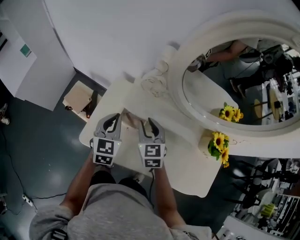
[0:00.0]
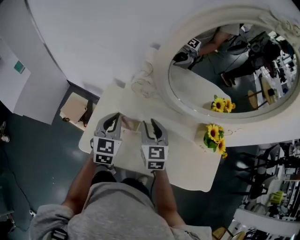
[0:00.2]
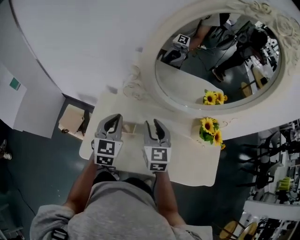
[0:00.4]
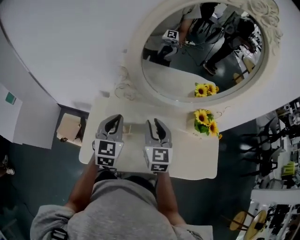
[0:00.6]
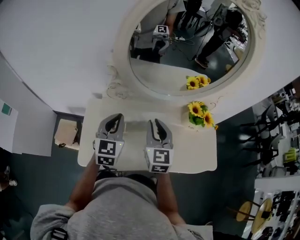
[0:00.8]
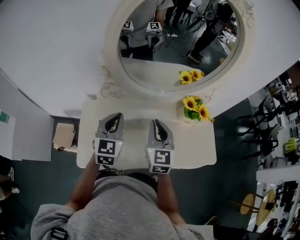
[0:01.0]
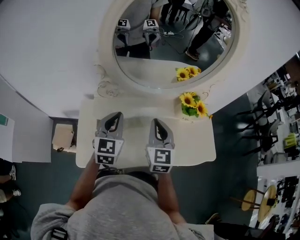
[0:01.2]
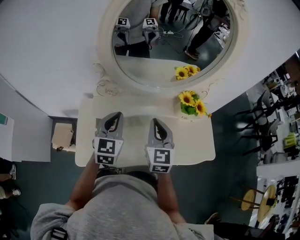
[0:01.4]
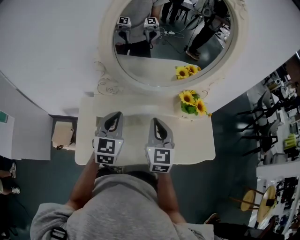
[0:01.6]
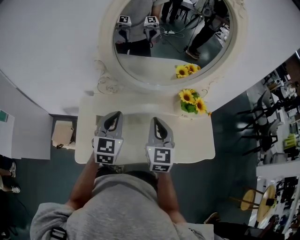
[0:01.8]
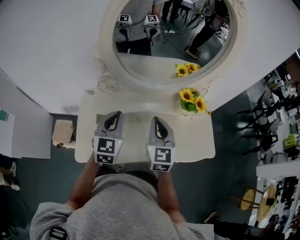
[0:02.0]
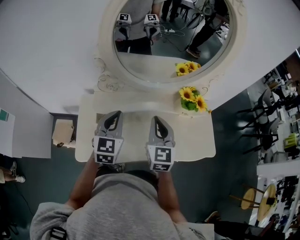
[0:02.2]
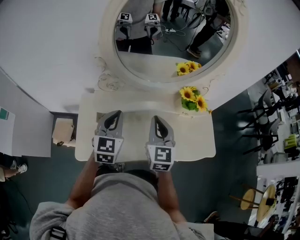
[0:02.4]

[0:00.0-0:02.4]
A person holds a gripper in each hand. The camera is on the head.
0:00.0 to 0:01.2: The right gripper ends up approximately 20 cm from where it was, changes its angle by roughly 40 degrees, and closes. Meanwhile the left gripper moves approximately 15 cm, and changes its angle by some 30 degrees.
0:01.2 to 0:02.4: The grippers move only a little.

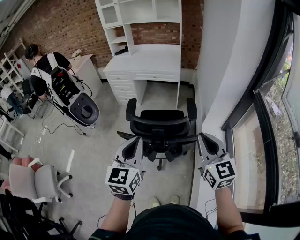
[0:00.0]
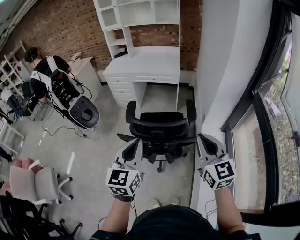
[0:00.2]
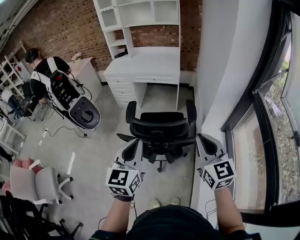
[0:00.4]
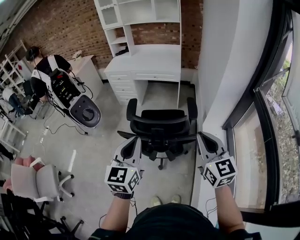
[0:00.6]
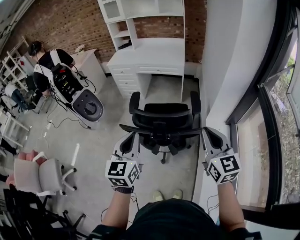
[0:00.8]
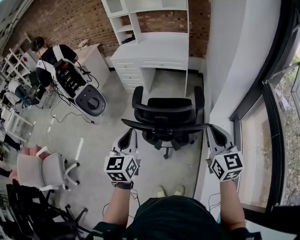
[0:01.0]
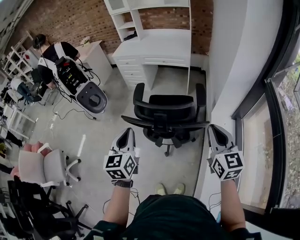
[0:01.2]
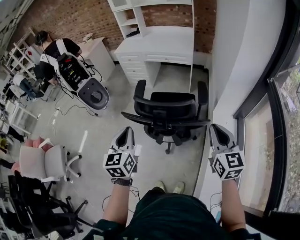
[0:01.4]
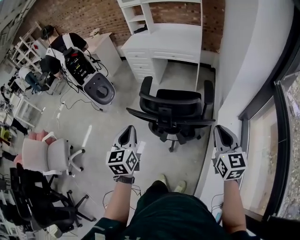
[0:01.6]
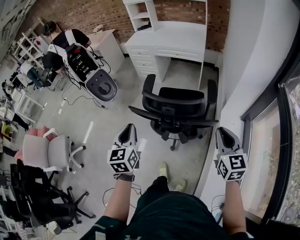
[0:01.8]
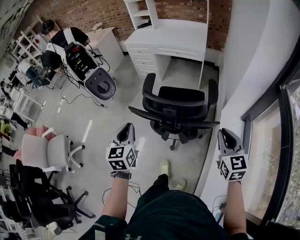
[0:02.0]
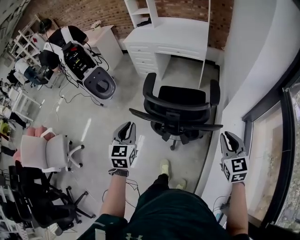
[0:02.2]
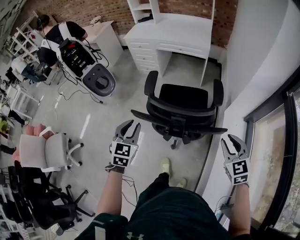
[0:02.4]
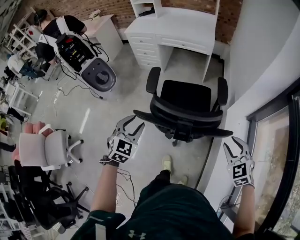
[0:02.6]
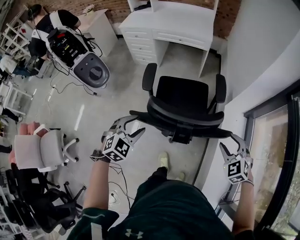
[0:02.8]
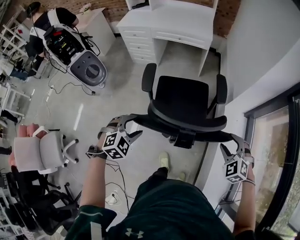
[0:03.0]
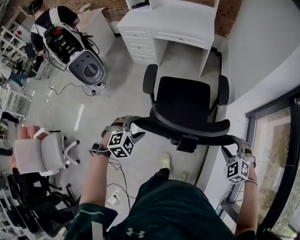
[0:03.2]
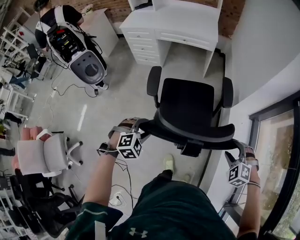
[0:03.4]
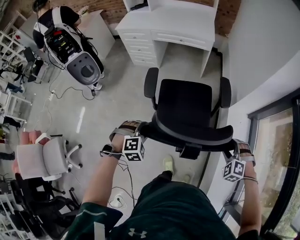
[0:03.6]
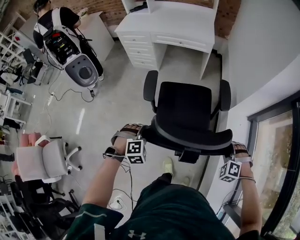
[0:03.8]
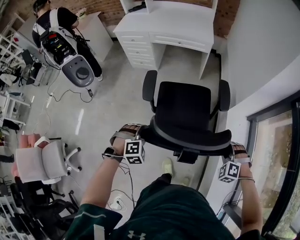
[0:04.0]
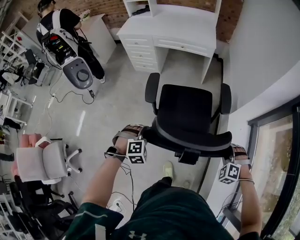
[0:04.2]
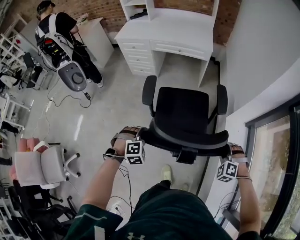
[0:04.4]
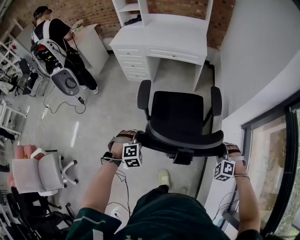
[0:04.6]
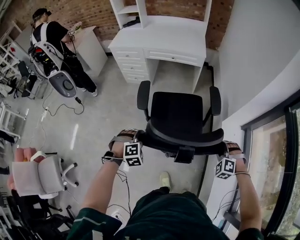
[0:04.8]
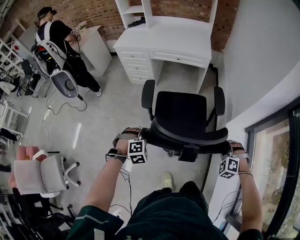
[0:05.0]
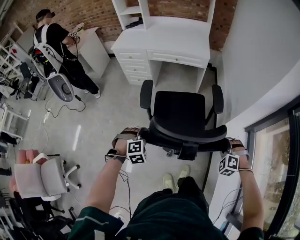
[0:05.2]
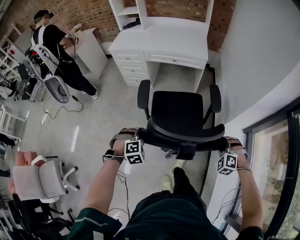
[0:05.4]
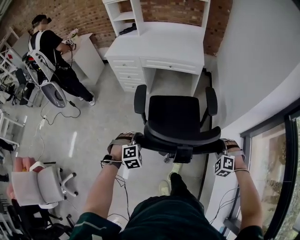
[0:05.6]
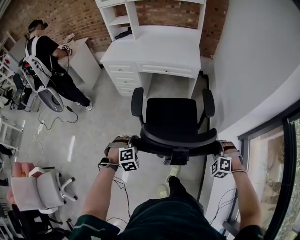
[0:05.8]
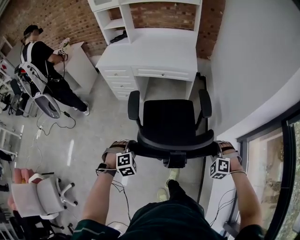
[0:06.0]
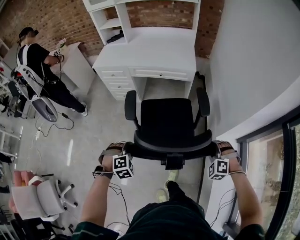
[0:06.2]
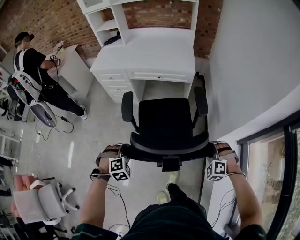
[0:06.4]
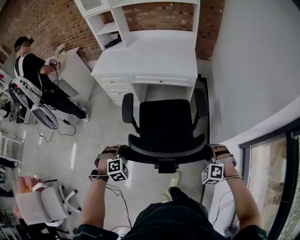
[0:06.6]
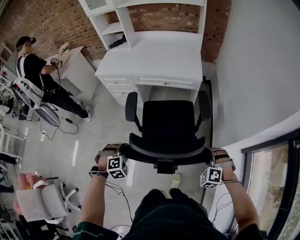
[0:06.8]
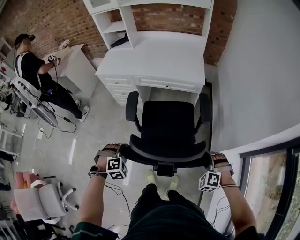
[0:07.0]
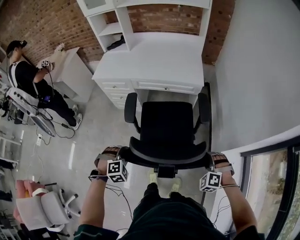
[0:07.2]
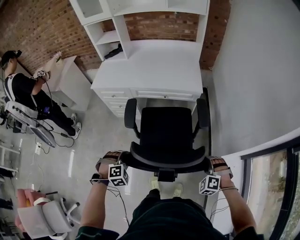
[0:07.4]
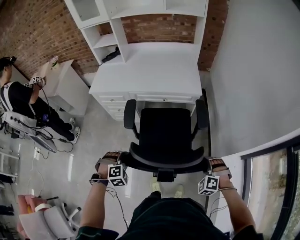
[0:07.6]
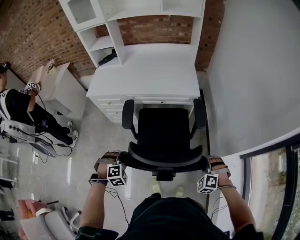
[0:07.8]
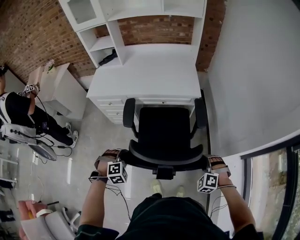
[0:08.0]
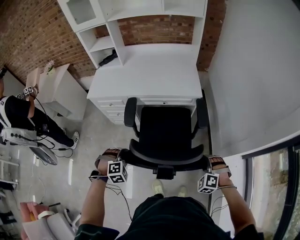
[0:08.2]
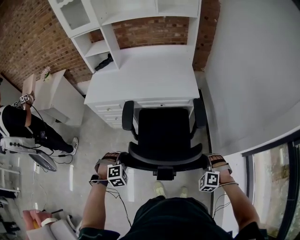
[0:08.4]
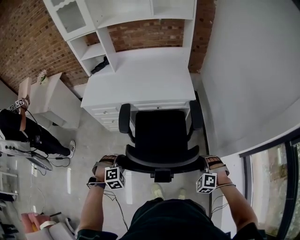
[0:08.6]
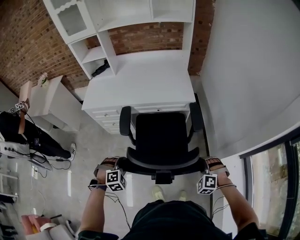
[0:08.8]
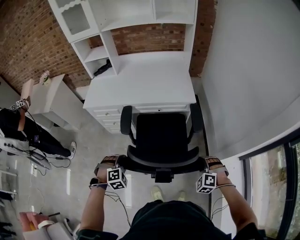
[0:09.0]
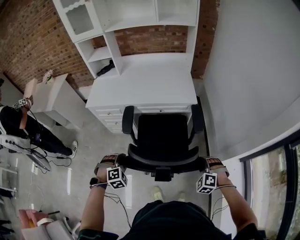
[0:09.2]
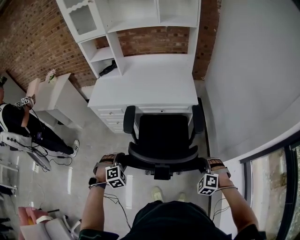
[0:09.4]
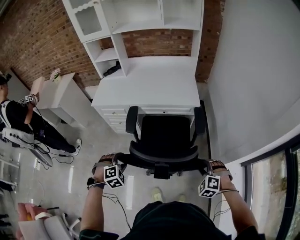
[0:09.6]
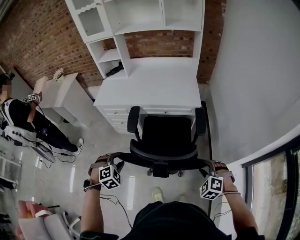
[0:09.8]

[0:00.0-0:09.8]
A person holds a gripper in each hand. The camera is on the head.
0:00.0 to 0:01.4: The left gripper heads downward, covering approximately 10 cm. Meanwhile the right gripper is displaced to the right and downward by some 10 cm.
0:01.4 to 0:02.8: The two grippers go roughly 20 cm downward and forward. The left gripper rotates approximately 60 degrees, and opens up. Meanwhile the right gripper tips its fingers downward by some 30 degrees, and opens its fingers.
0:02.8 to 0:04.2: Both grippers move downward and forward, approximately 15 cm. The left gripper changes its angle by some 30 degrees; the right gripper swivels roughly 30 degrees, and closes its fingers.
0:04.2 to 0:05.6: Both grippers travel together forward, approximately 10 cm.
0:05.6 to 0:07.0: Both grippers move forward, some 15 cm.
0:07.0 to 0:08.4: The grippers both shift forward and to the left by about 15 cm.
0:08.4 to 0:09.8: The grippers both shift upward by about 5 cm.

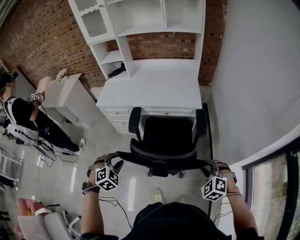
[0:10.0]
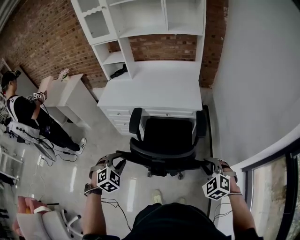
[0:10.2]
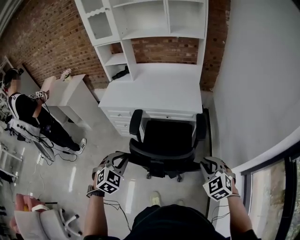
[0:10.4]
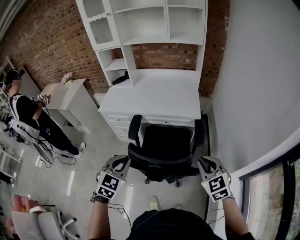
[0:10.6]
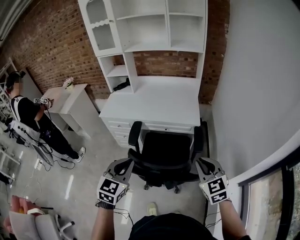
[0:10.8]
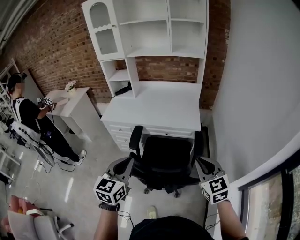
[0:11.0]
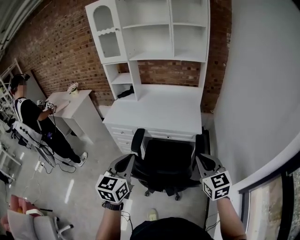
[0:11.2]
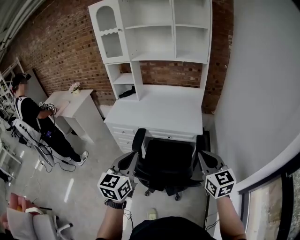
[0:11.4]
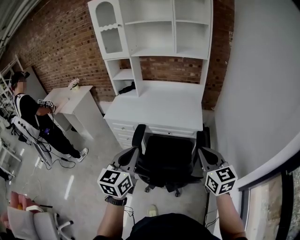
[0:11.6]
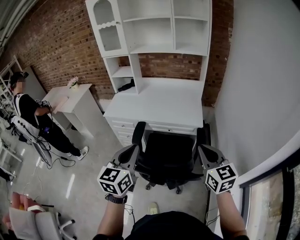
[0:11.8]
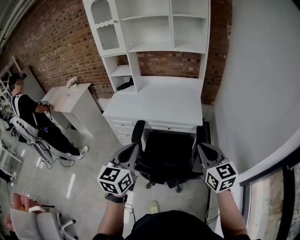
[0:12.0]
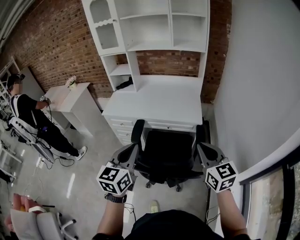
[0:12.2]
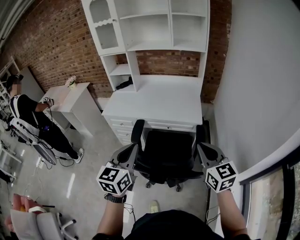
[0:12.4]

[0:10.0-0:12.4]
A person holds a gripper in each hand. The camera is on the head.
0:10.0 to 0:11.2: The right gripper heads upward and forward, covering about 20 cm, tilts its fingers some 30 degrees upward, and closes its fingers. The left gripper heads upward and to the right, covering approximately 20 cm, angles its fingers upward, by approximately 40 degrees, and closes its fingers.
0:11.2 to 0:12.4: The grippers make only small movements.

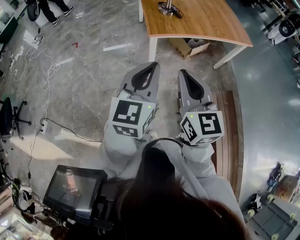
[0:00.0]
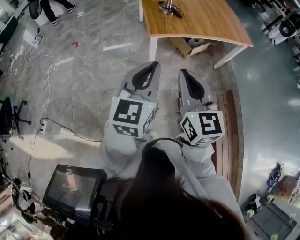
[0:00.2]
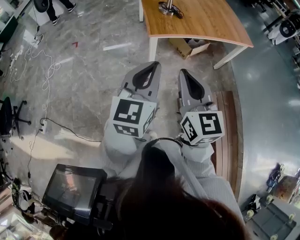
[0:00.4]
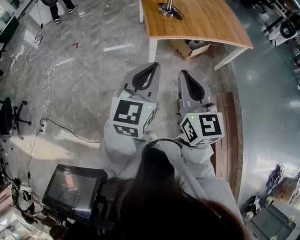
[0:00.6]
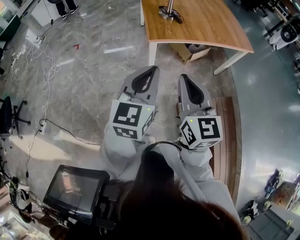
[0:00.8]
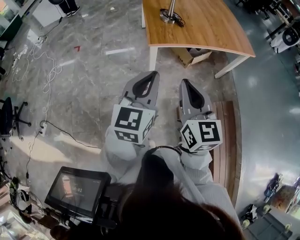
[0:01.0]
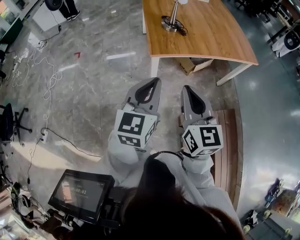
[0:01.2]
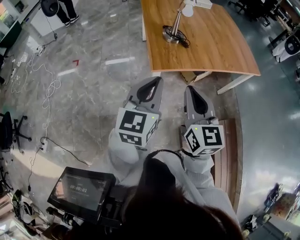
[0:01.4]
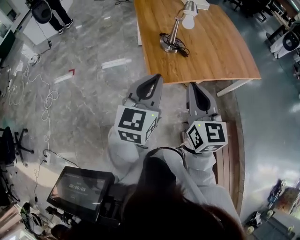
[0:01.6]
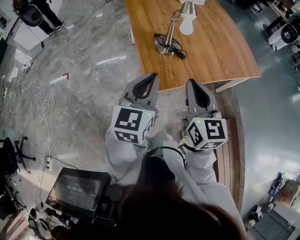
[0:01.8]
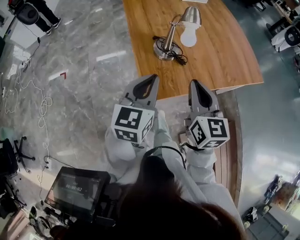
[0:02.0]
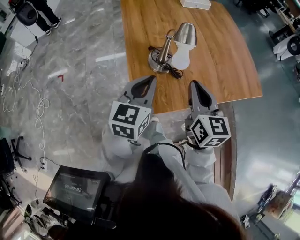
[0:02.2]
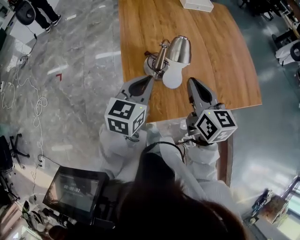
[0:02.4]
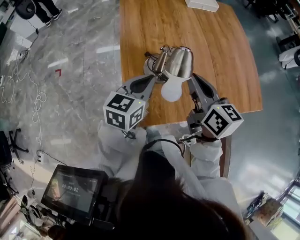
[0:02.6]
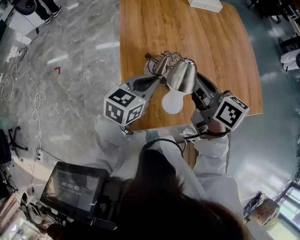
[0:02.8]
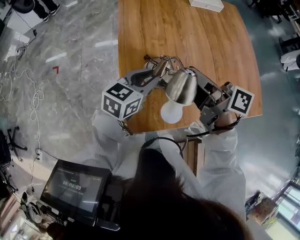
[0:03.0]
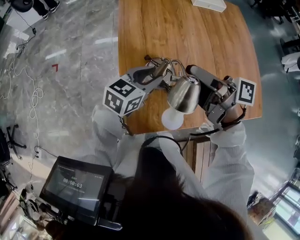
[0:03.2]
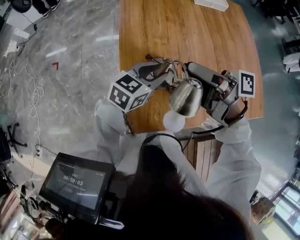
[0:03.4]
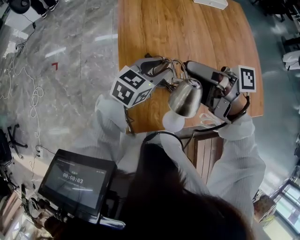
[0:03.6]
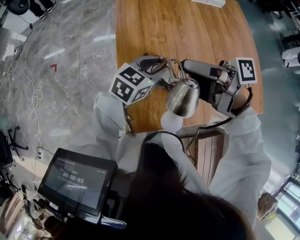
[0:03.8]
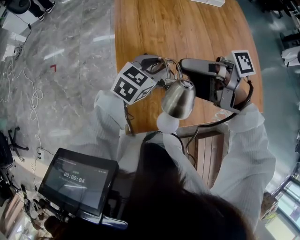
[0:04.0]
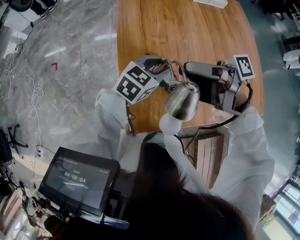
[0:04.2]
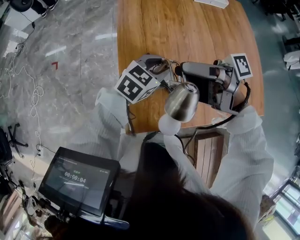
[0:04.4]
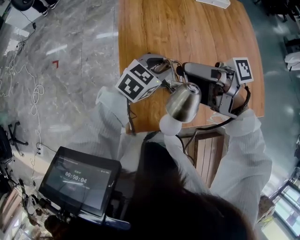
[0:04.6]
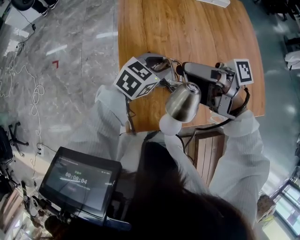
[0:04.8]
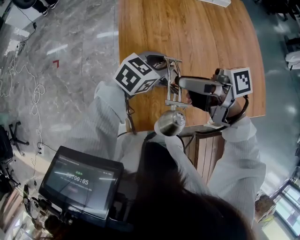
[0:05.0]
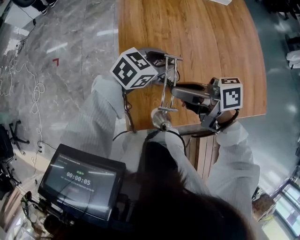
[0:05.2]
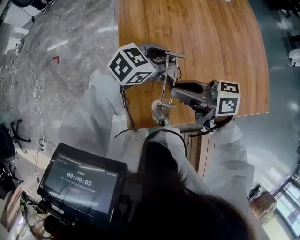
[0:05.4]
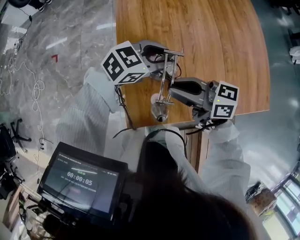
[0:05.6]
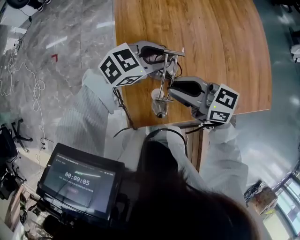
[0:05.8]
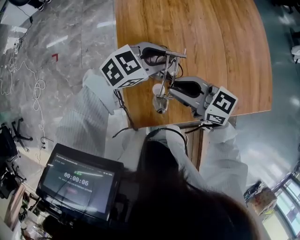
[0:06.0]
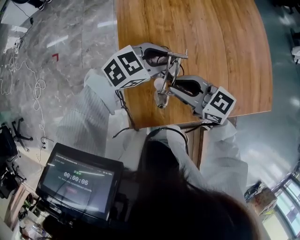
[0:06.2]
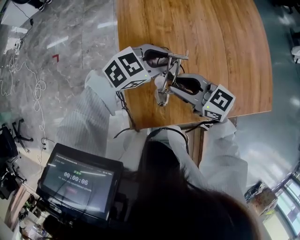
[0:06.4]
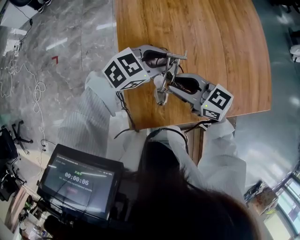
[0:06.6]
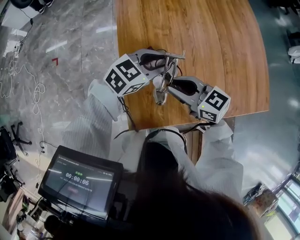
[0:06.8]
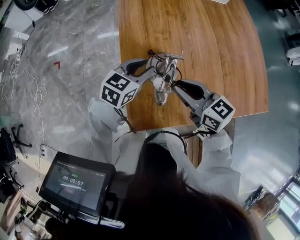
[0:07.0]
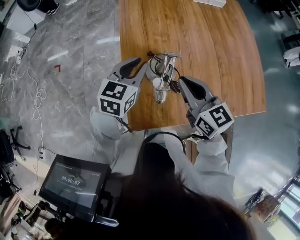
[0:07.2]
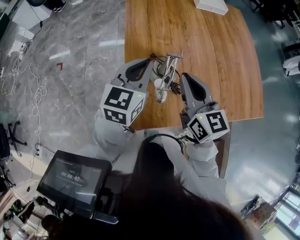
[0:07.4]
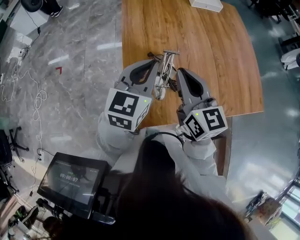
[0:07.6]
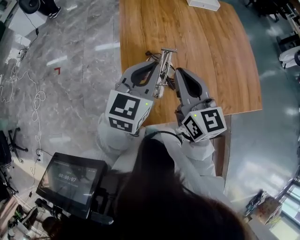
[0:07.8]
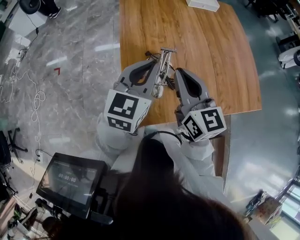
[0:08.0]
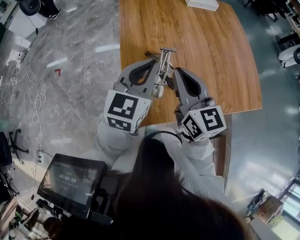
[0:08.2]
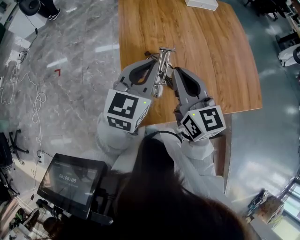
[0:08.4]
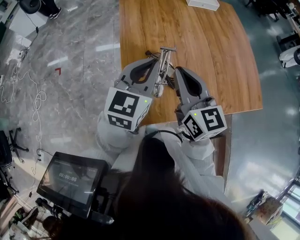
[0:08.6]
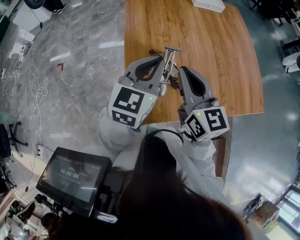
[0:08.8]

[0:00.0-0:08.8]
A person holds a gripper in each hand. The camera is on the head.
0:00.0 to 0:01.4: The grippers both shift forward by roughly 25 cm.
0:01.4 to 0:03.0: The two grippers travel together, forward, roughly 60 cm. The right gripper rotates around the line of its fingers by approximately 50 degrees, clockwise from behind; the left gripper changes its angle by about 30 degrees.
0:03.0 to 0:04.4: The left gripper shifts by roughly 10 cm, while the right gripper shifts by about 5 cm, and rotates approximately 40 degrees.
0:04.4 to 0:05.8: The right gripper shifts some 10 cm downward, and rotates around the line of its fingers by about 60 degrees, counterclockwise from behind.
0:05.8 to 0:07.4: The two grippers go roughly 10 cm upward. The right gripper swivels roughly 50 degrees. The left gripper rotates roughly 50 degrees, and closes up.
0:07.4 to 0:08.8: There are only small adjustments of the grippers.
